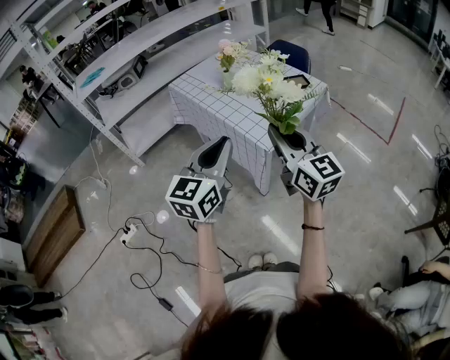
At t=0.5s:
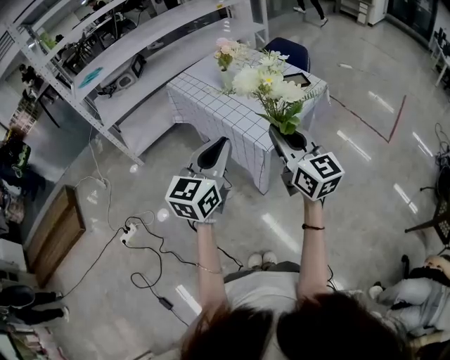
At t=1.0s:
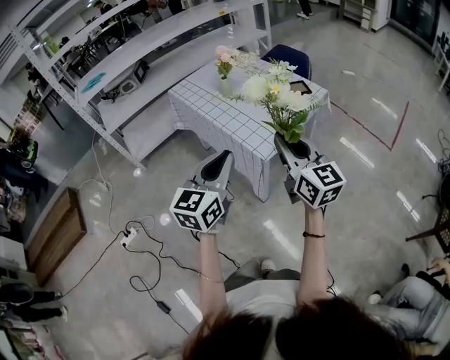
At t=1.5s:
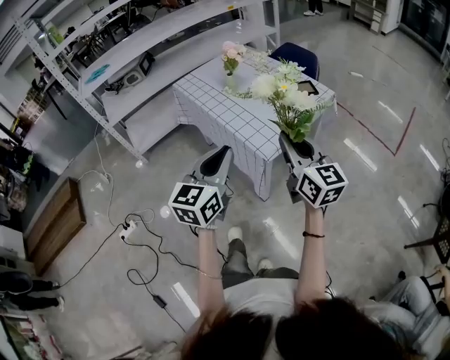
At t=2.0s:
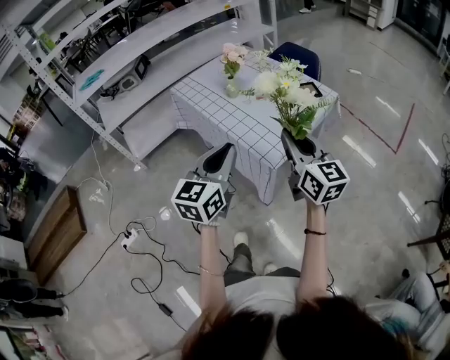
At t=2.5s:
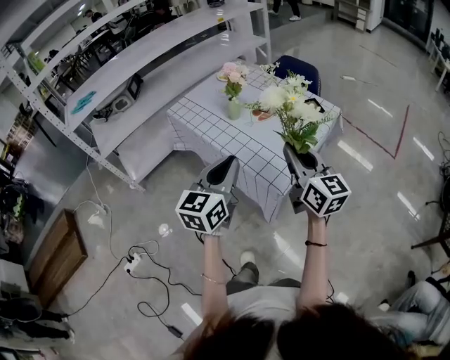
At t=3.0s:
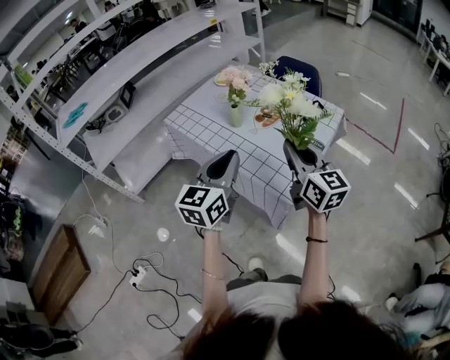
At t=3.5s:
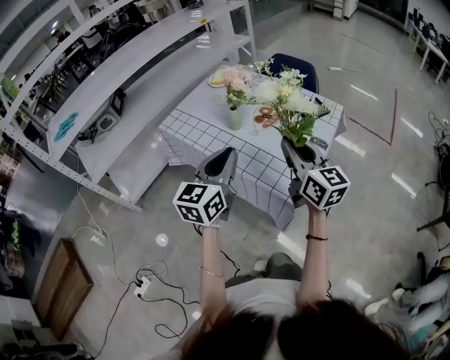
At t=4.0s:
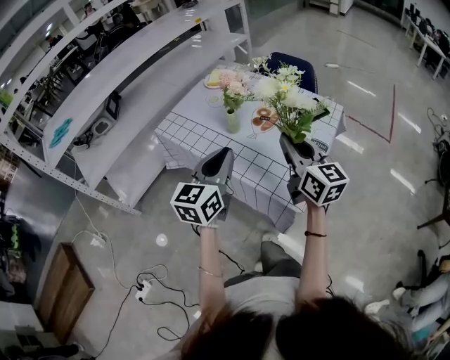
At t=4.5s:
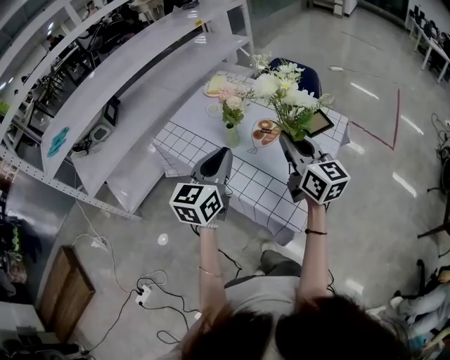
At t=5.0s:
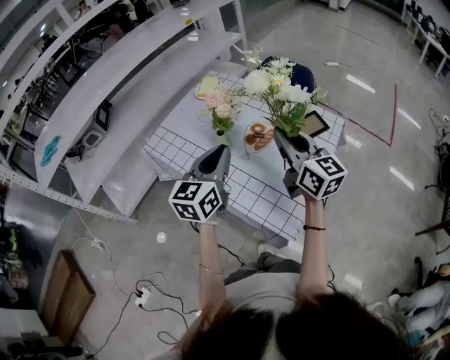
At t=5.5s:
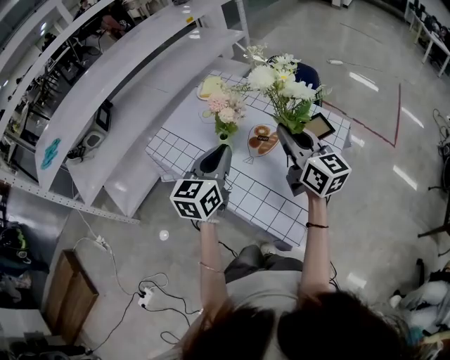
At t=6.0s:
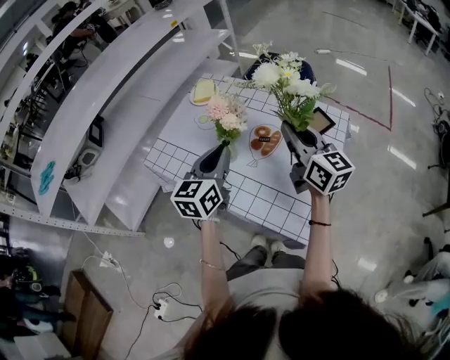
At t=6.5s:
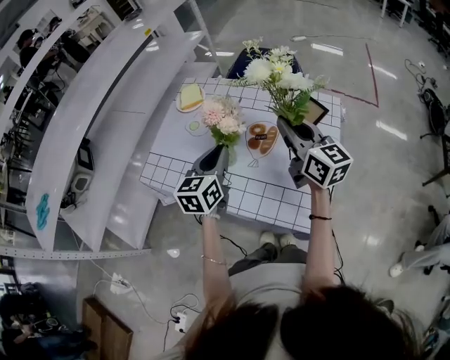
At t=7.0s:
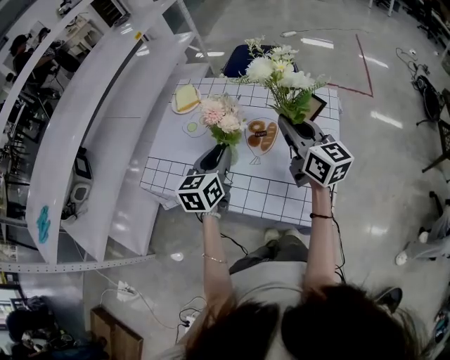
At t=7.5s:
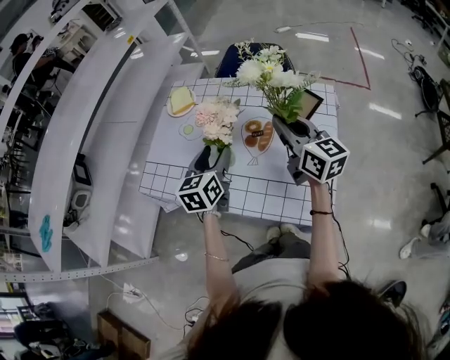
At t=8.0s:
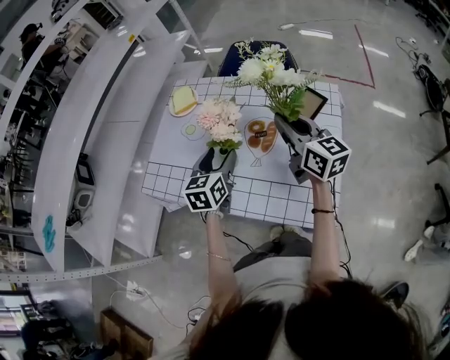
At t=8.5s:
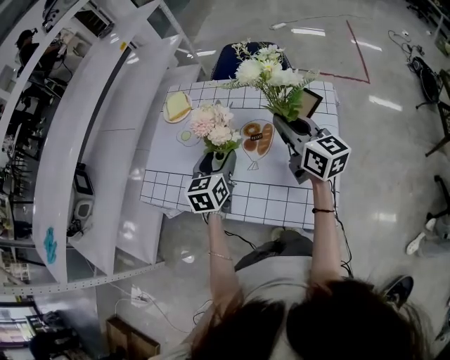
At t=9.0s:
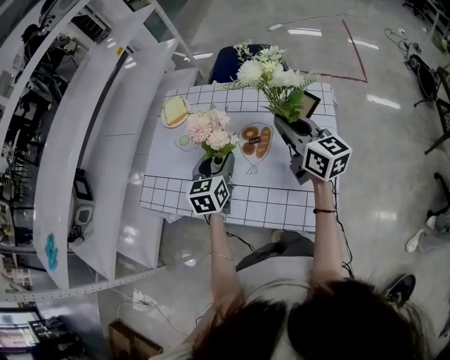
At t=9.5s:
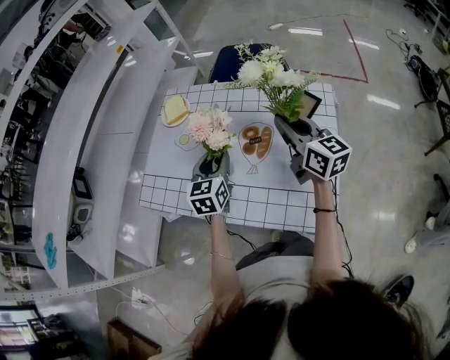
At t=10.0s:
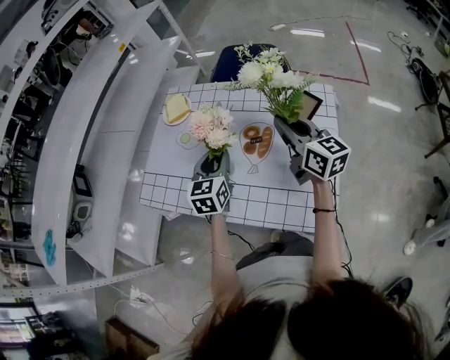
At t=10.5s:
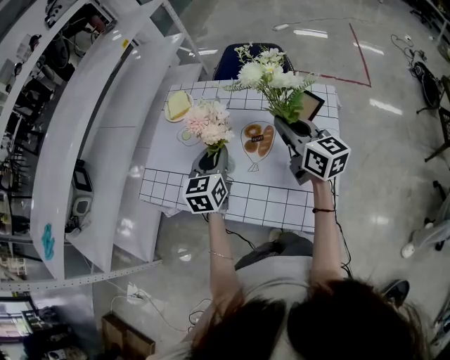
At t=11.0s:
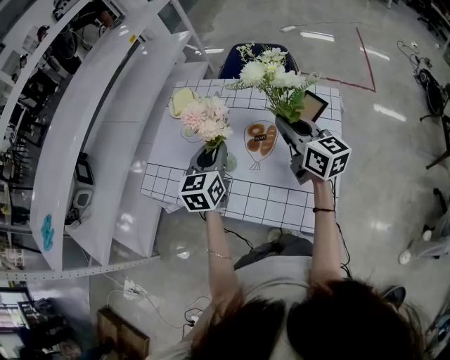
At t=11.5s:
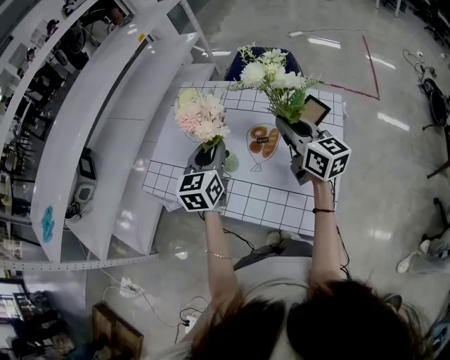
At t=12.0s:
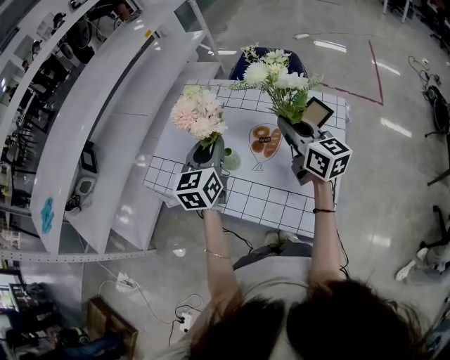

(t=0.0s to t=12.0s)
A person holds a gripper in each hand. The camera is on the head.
t=0.0s - t=2.0s: Both grippers travel together forward, approximately 10 cm.
t=2.0s - t=4.0s: Both grippers travel together forward and to the left, approximately 25 cm.
t=4.0s - t=6.0s: Both grippers move forward, about 20 cm.
t=6.0s - t=8.0s: The left gripper is displaced downward and forward by roughly 10 cm, and opens up; the right gripper shifts by some 5 cm.
t=8.0s - t=10.0s: The left gripper closes its fingers.
t=10.0s - t=12.0s: The left gripper heads upward, covering some 10 cm.

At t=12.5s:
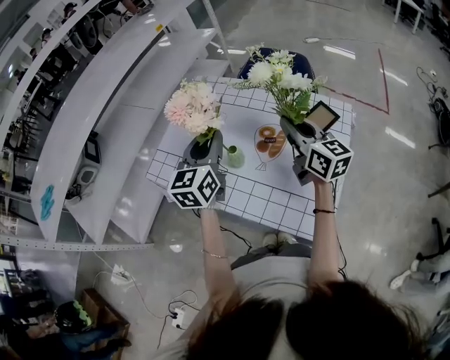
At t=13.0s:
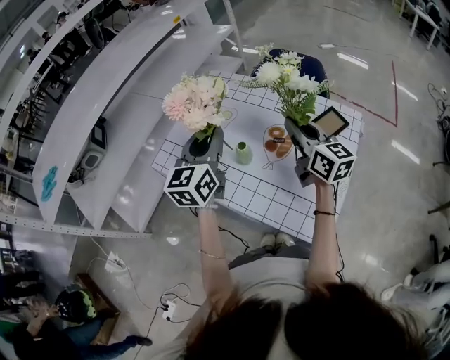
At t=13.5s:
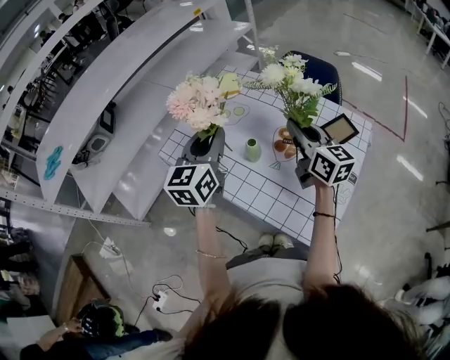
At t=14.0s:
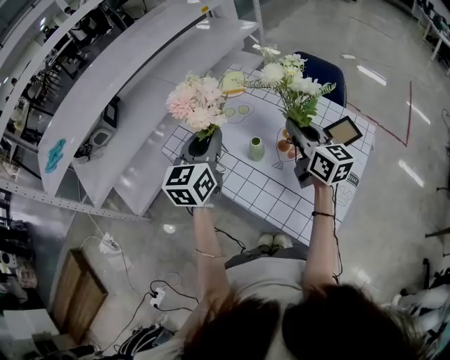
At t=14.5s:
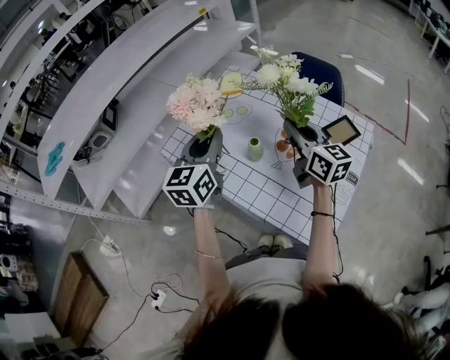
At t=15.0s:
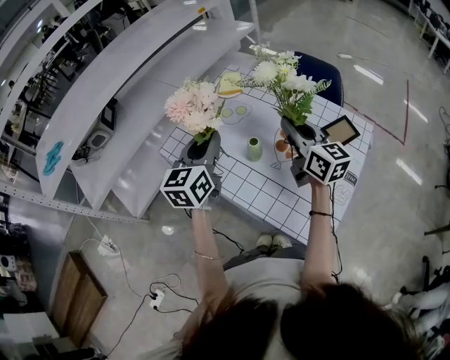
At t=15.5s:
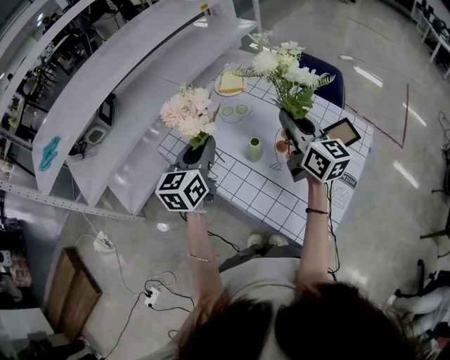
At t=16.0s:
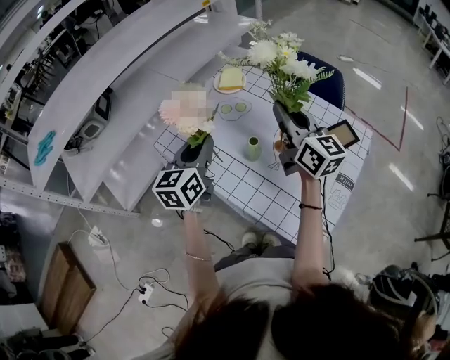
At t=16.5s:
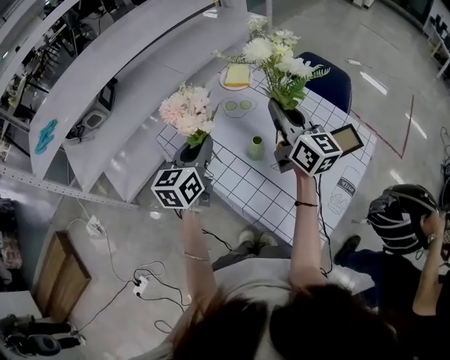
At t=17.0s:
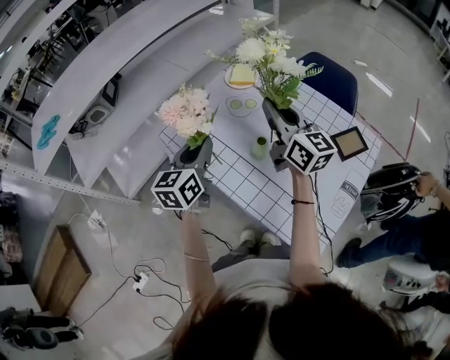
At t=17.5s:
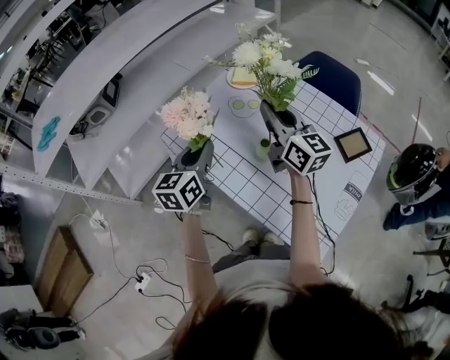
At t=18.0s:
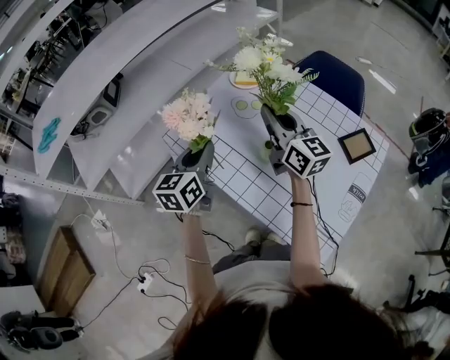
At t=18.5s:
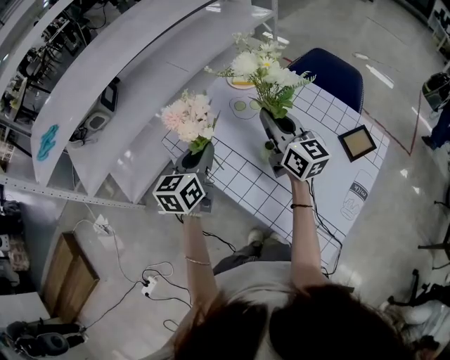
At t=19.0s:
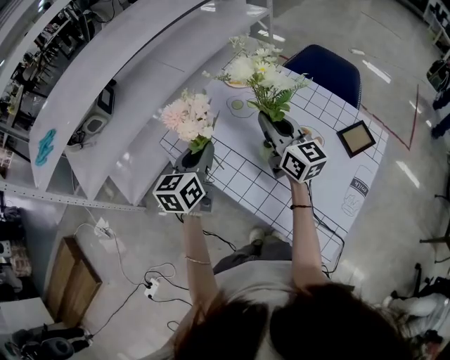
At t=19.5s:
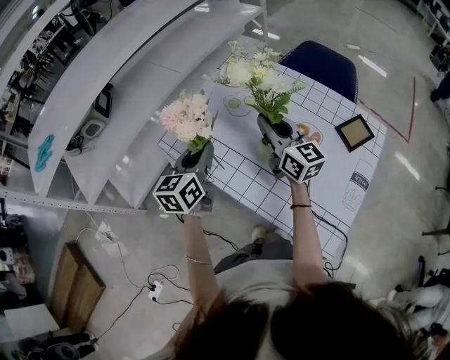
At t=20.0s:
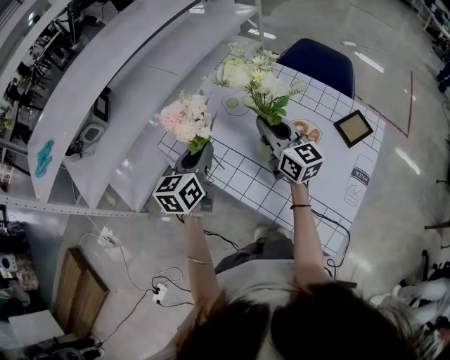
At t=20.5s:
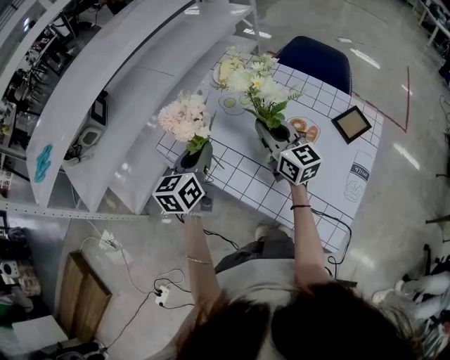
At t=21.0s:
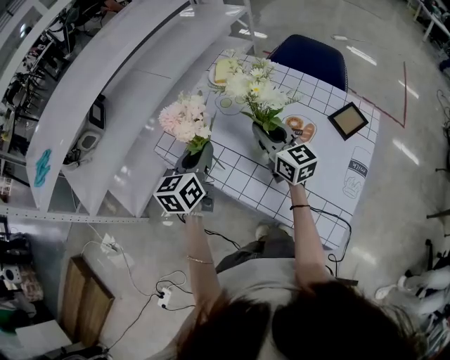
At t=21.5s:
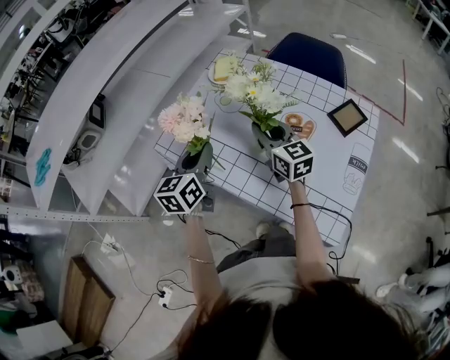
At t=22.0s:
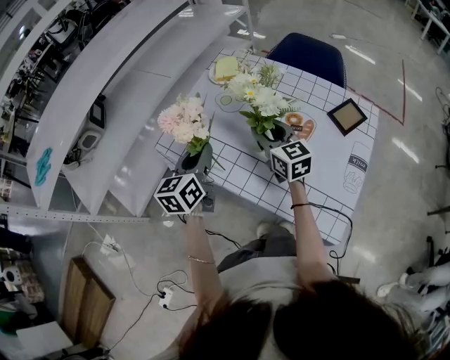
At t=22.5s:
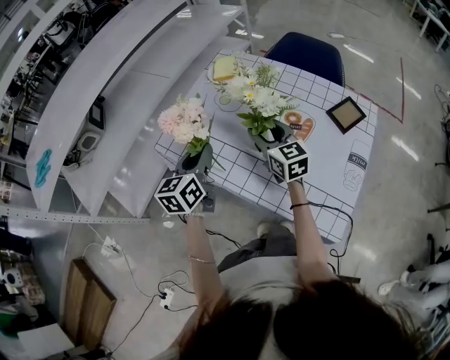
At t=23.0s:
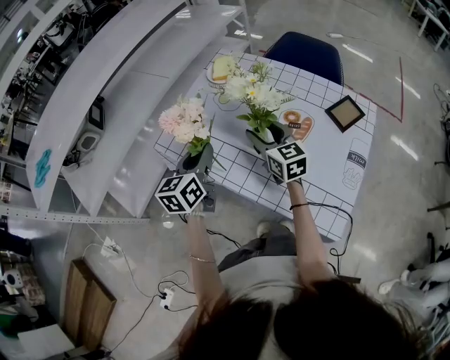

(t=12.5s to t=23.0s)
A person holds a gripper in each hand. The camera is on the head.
t=12.5s - t=14.5s: The grippers both shift to the left by approximately 5 cm.
t=14.5s - t=16.5s: The left gripper heads downward, covering approximately 5 cm. Meanwhile the right gripper travels to the left by roughly 5 cm.
t=16.5s - t=19.0s: The left gripper changes place by about 5 cm. Meanwhile the right gripper moves downward, about 5 cm.
t=19.0s - t=21.0s: The right gripper travels downward by some 5 cm.
t=21.0s - t=23.0s: The right gripper opens its fingers.

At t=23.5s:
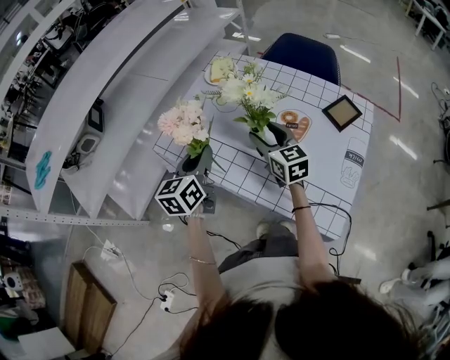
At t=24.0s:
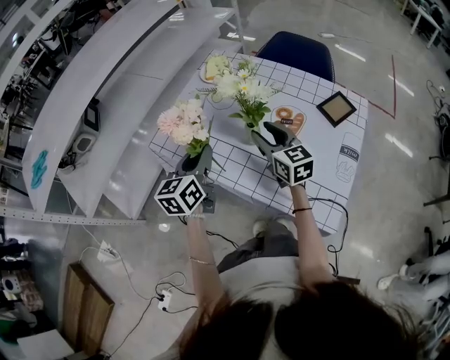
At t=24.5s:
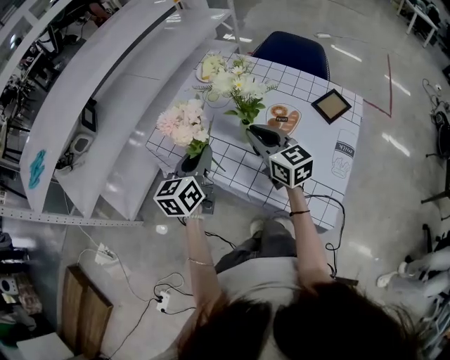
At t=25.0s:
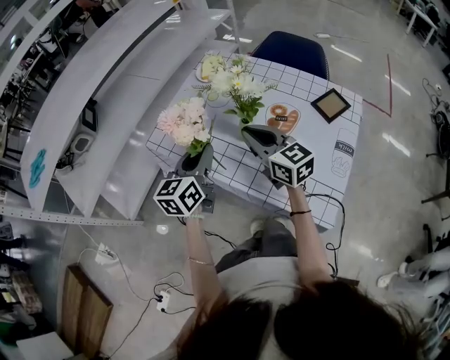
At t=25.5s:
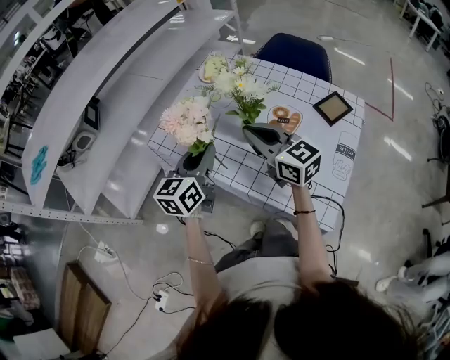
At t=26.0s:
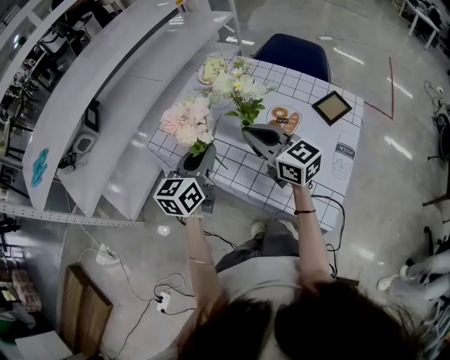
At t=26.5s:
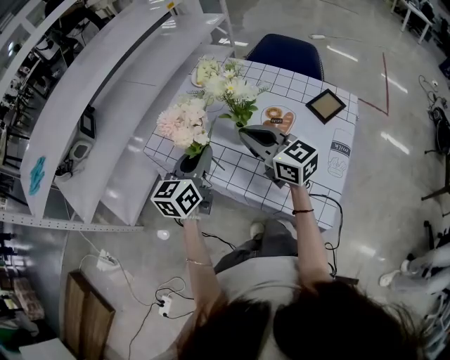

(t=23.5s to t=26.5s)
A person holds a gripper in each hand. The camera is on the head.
t=23.5s - t=25.0s: The right gripper is displaced upward and backward by approximately 10 cm, and closes its fingers.
t=25.0s - t=26.5s: The grippers stay close to where they were, moving slightly.

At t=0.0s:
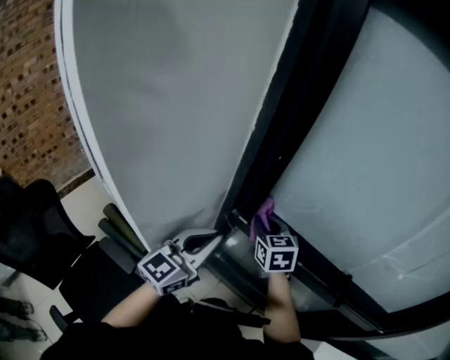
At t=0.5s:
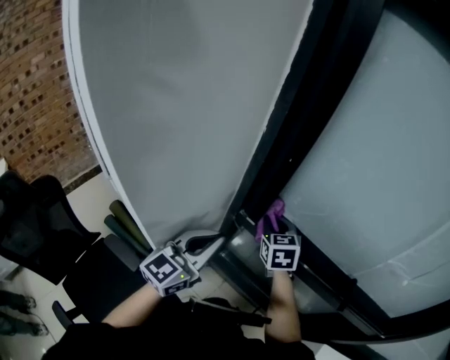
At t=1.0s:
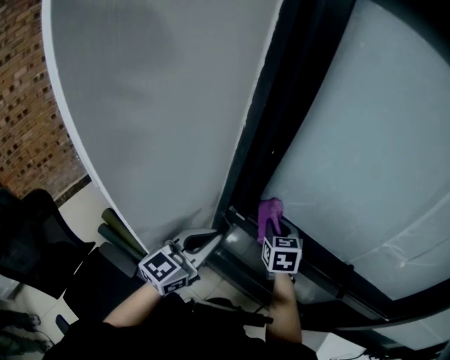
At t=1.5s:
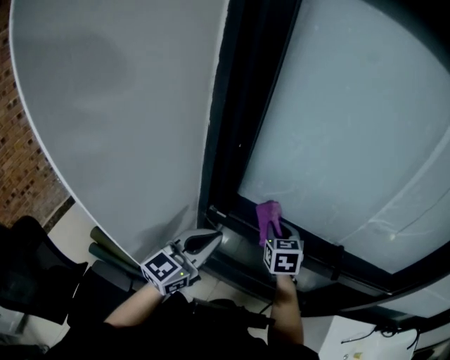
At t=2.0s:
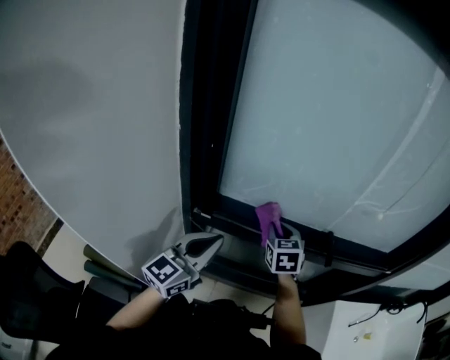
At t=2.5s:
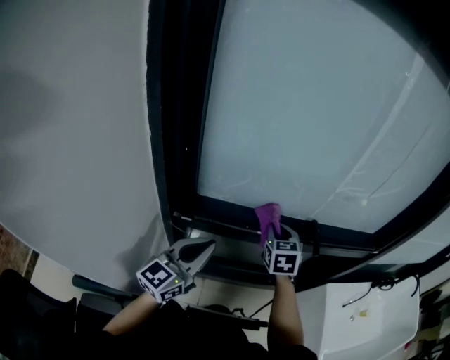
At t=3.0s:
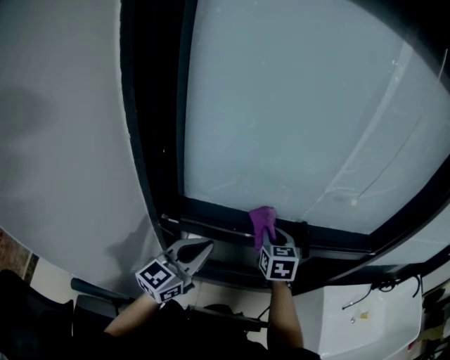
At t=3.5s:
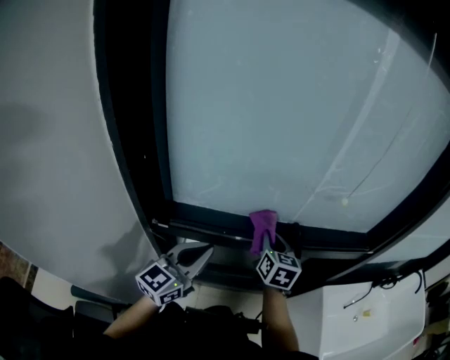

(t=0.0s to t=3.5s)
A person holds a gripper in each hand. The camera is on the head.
t=0.0s - t=2.0s: The right gripper ends up approximately 20 cm from where it was, and turns by approximately 30 degrees. The left gripper shifts by some 10 cm, and changes its angle by about 20 degrees.
t=2.0s - t=3.5s: The left gripper goes about 10 cm to the right and forward. The right gripper shifts approximately 10 cm to the right, and turns by roughly 30 degrees.
